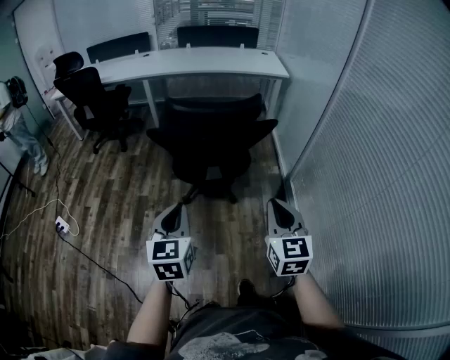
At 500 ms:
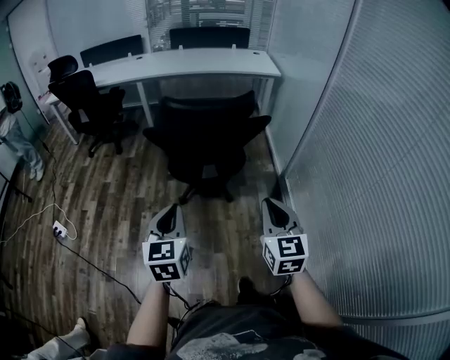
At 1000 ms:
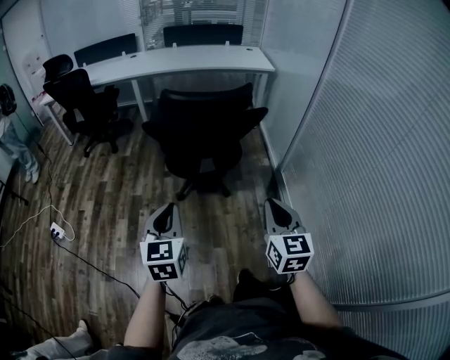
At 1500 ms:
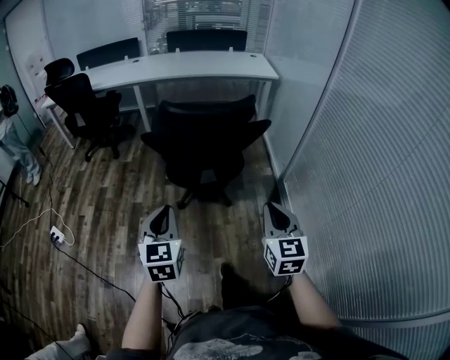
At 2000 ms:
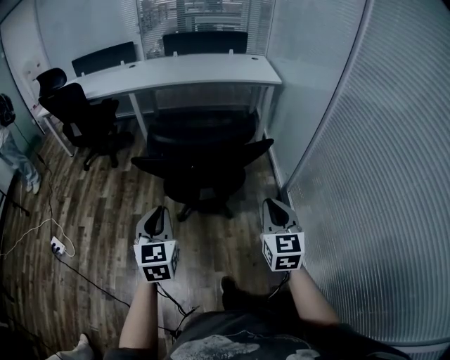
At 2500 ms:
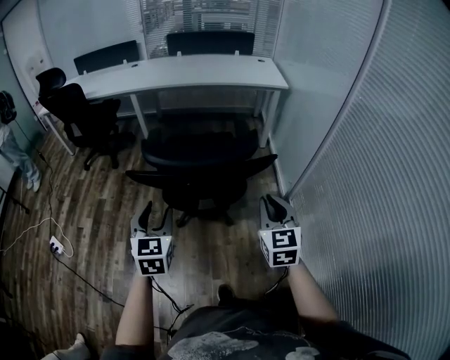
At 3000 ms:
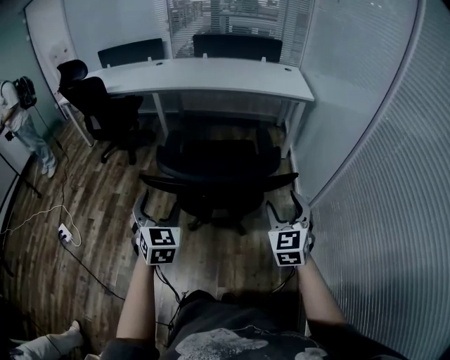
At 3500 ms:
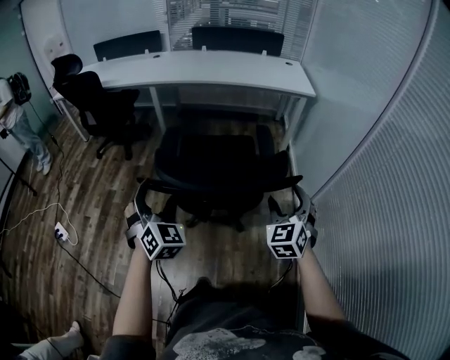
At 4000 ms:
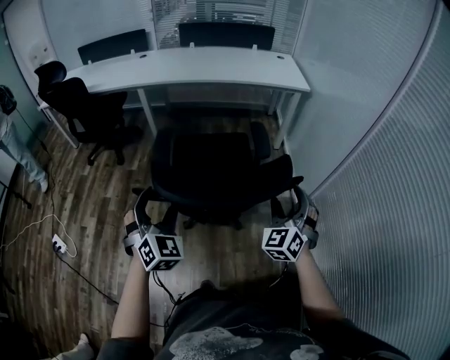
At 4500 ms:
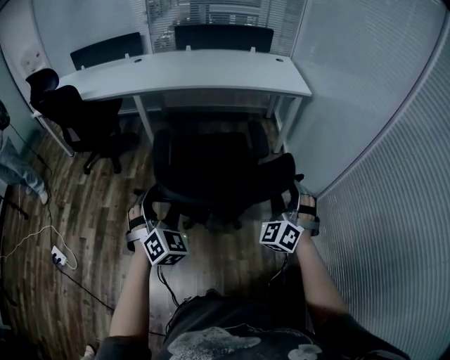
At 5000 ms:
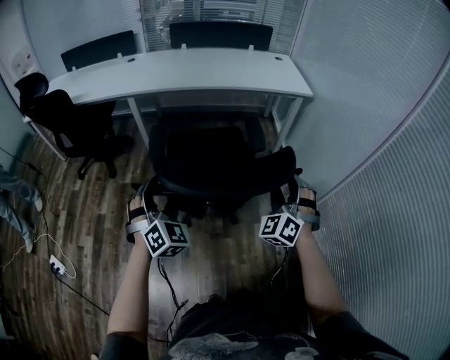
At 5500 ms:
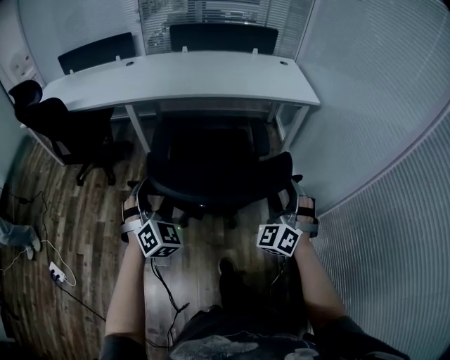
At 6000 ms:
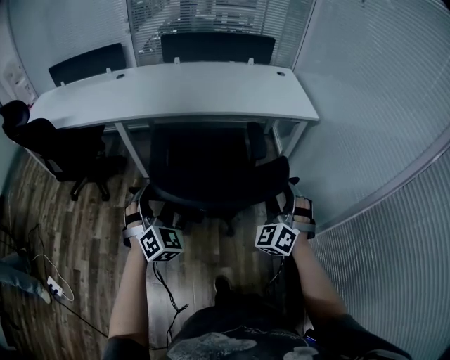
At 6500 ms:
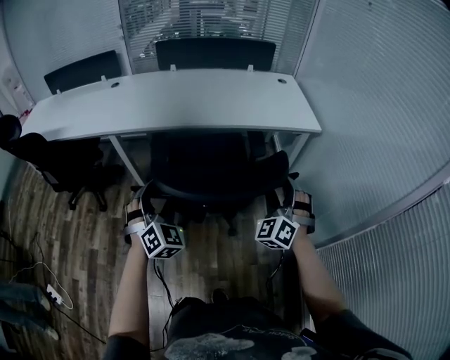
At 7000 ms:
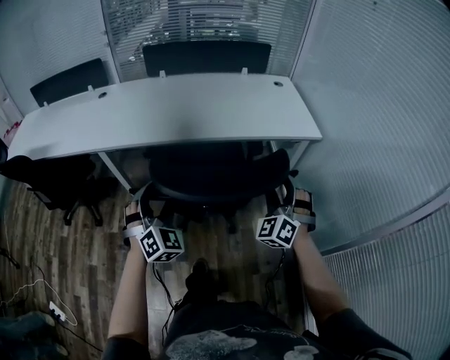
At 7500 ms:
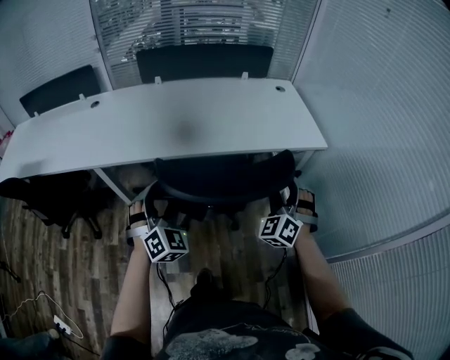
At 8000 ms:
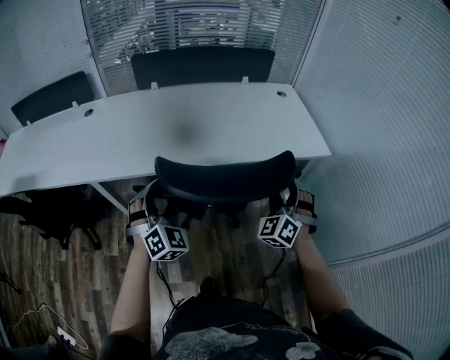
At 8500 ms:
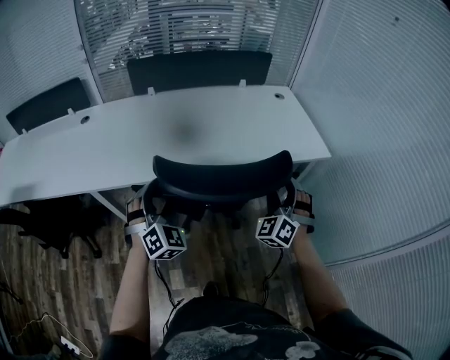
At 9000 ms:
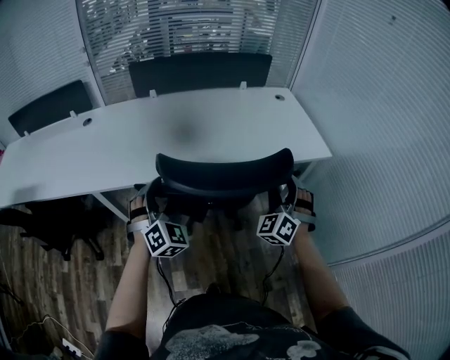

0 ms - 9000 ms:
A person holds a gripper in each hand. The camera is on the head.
0 ms - 2000 ms: The grippers both shift forward by approximately 10 cm.
2000 ms - 4500 ms: Both grippers travel together forward, approximately 30 cm. The left gripper twists some 40 degrees clockwise, seen from behind, and opens, while the right gripper rotates around the line of its fingers by some 50 degrees, counterclockwise from behind, and opens.
4500 ms - 7000 ms: The two grippers travel together, forward, some 50 cm.
7000 ms - 9000 ms: The grippers both shift forward by about 20 cm.

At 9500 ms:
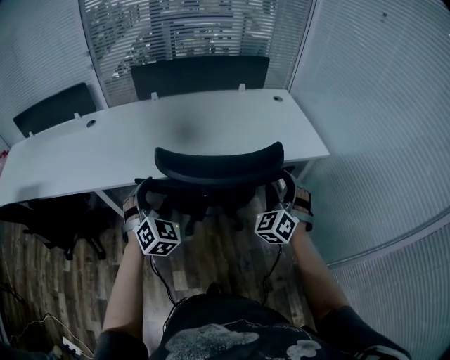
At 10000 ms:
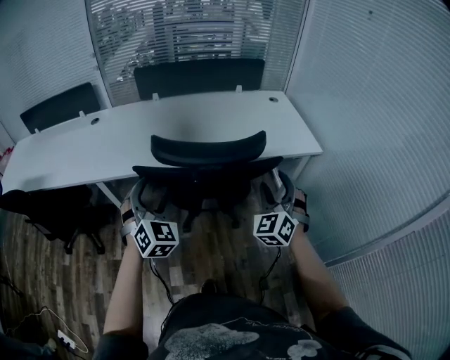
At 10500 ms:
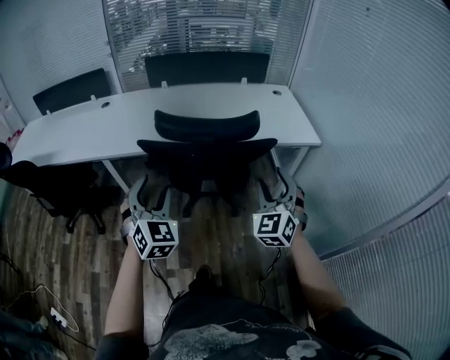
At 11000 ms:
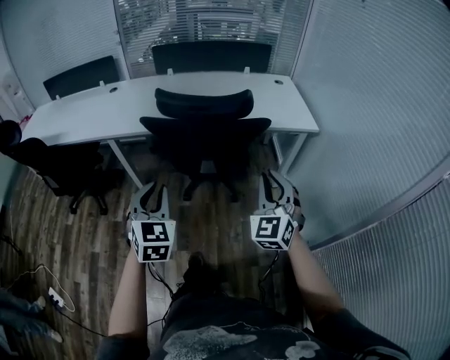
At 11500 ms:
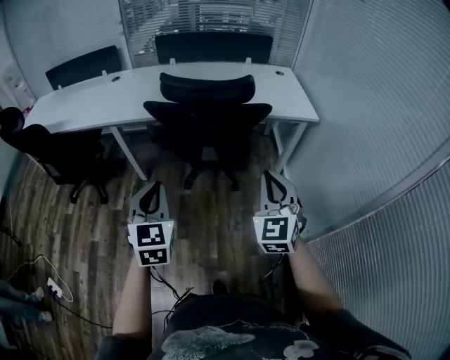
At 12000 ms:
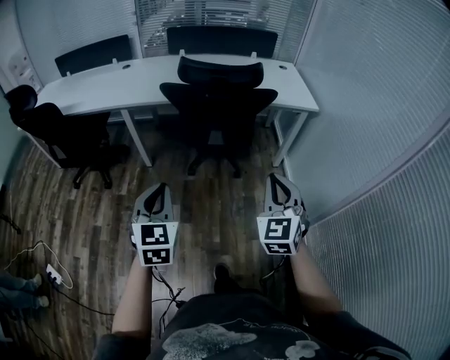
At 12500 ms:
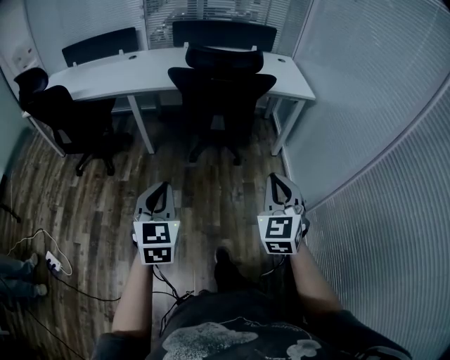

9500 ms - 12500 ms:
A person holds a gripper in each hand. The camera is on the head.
9500 ms - 11000 ms: Both grippers move backward, some 25 cm. The right gripper turns by some 30 degrees, and closes up. Meanwhile the left gripper changes its angle by approximately 30 degrees, and closes its fingers.
11000 ms - 12500 ms: The grippers both shift backward by approximately 30 cm.

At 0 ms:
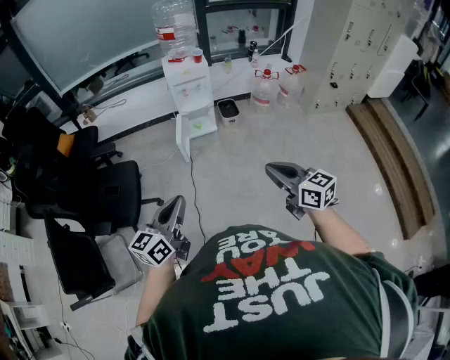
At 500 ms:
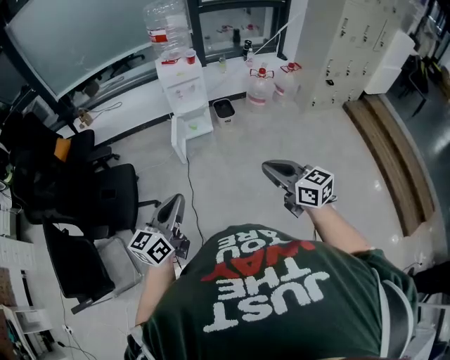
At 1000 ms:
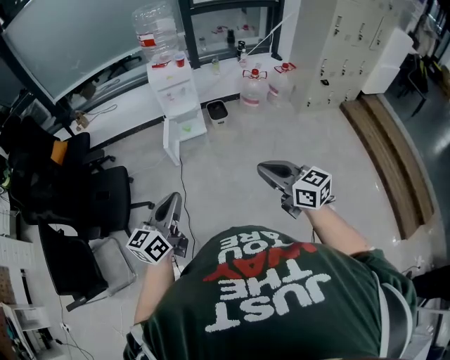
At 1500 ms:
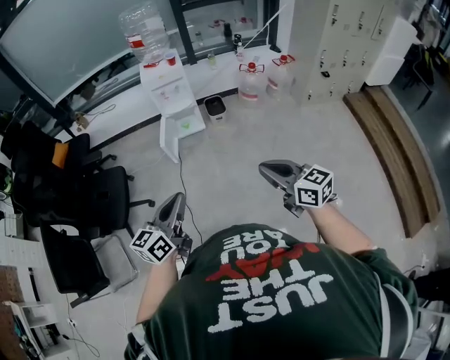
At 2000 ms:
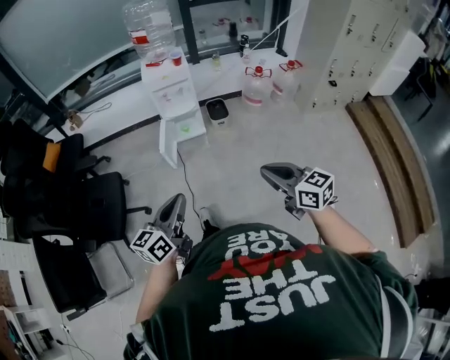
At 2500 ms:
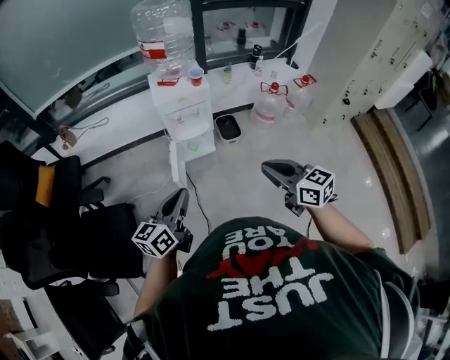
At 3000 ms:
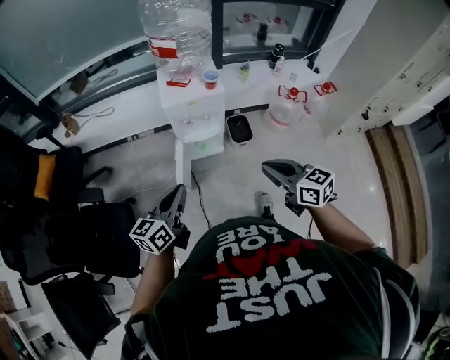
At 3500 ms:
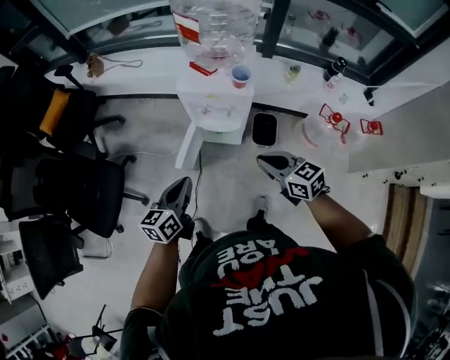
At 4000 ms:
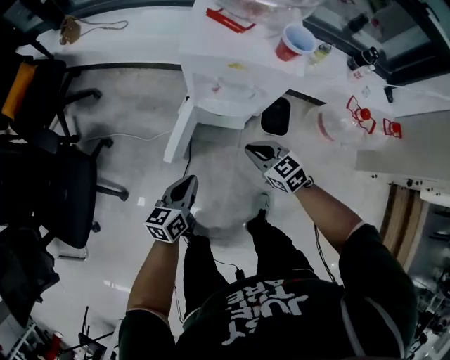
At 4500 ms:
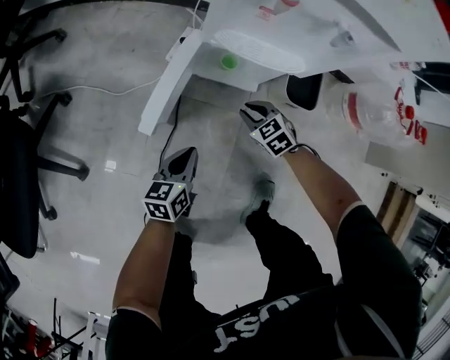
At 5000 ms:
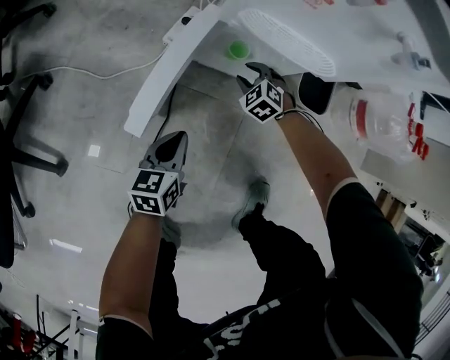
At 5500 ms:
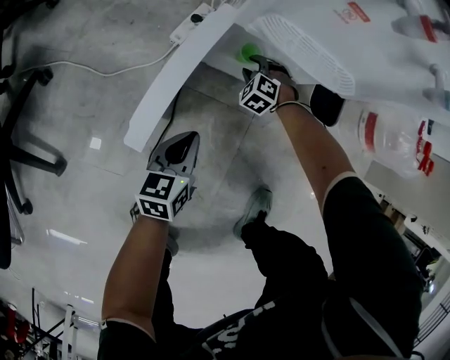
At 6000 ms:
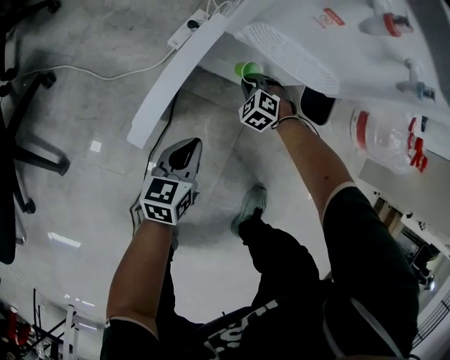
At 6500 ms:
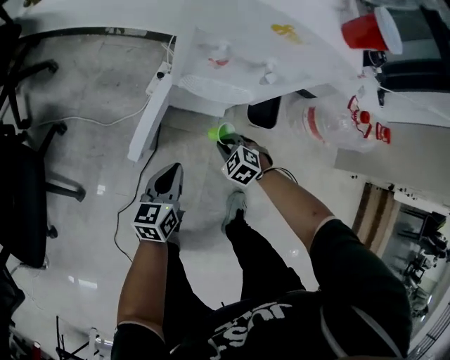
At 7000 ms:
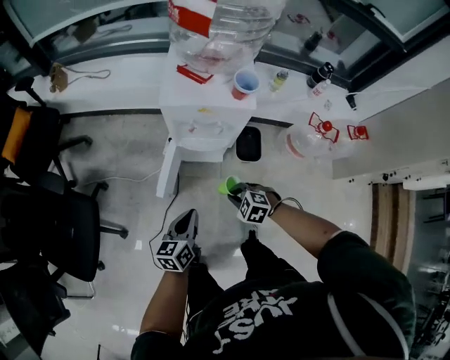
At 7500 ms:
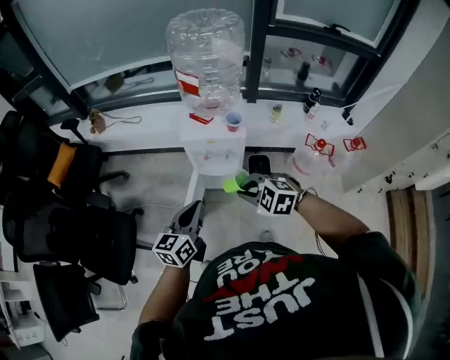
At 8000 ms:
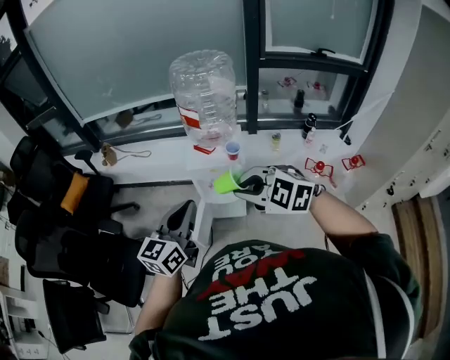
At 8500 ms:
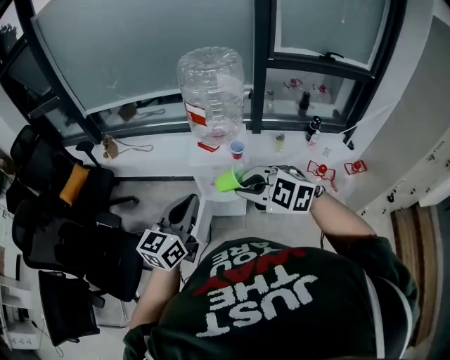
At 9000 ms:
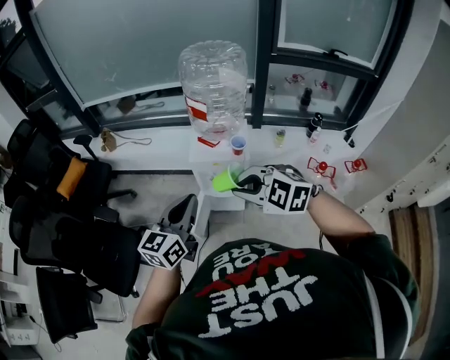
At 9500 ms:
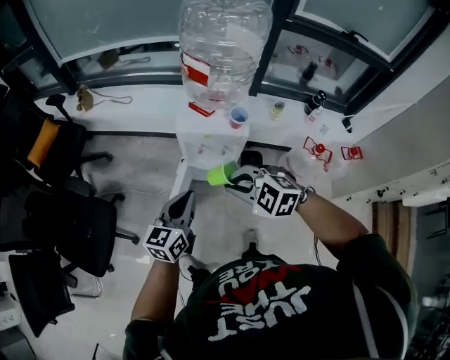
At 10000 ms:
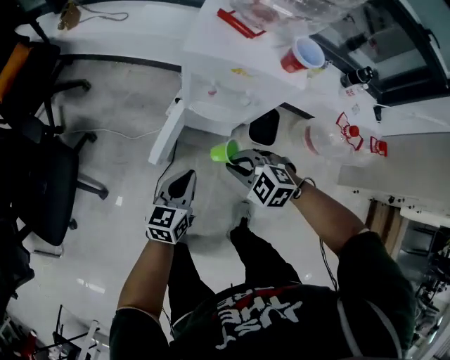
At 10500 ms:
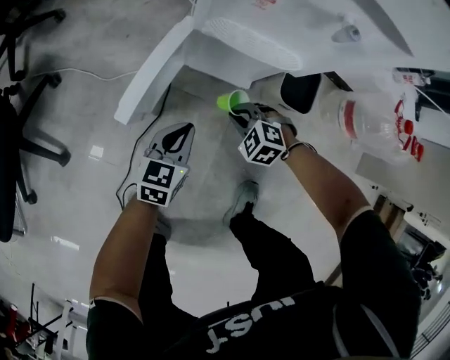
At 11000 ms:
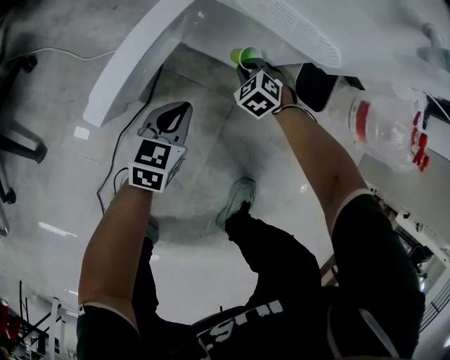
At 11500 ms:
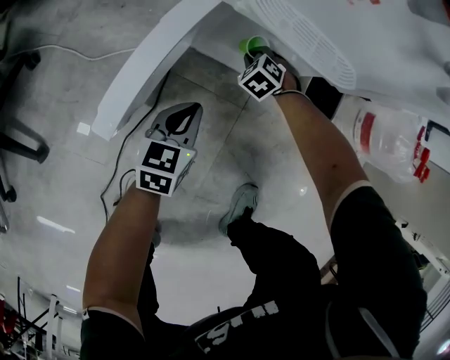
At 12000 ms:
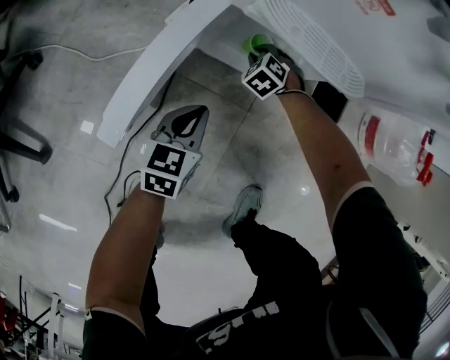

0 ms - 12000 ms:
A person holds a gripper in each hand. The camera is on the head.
0 ms - 2000 ms: Both grippers move to the right and forward, approximately 15 cm.
2000 ms - 4000 ms: The two grippers travel together, roughly 60 cm. The left gripper swivels about 30 degrees. The right gripper swivels some 40 degrees.
4000 ms - 6000 ms: Both grippers travel together downward, roughly 40 cm. The right gripper turns by roughly 50 degrees, and opens and closes again.
6000 ms - 8000 ms: The two grippers go approximately 90 cm upward. The right gripper swivels approximately 40 degrees. The left gripper rotates some 40 degrees.
8000 ms - 10000 ms: The grippers both shift downward by about 50 cm. The left gripper swivels roughly 20 degrees. Meanwhile the right gripper rotates some 20 degrees.
10000 ms - 12000 ms: The two grippers go approximately 50 cm downward. The right gripper changes its angle by about 30 degrees.

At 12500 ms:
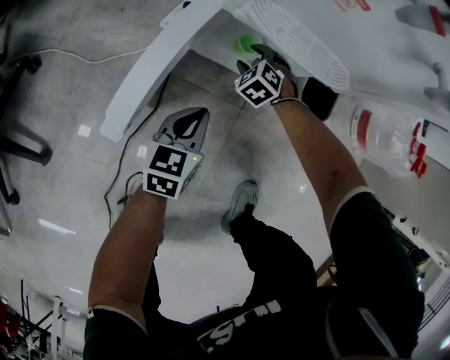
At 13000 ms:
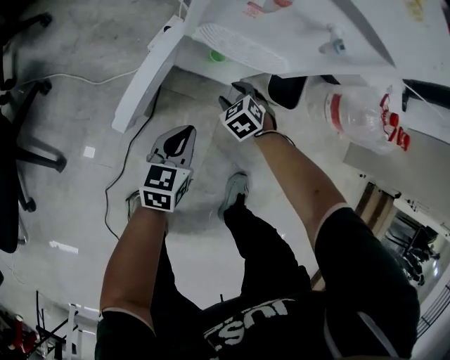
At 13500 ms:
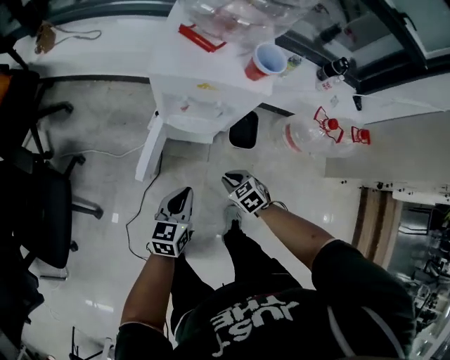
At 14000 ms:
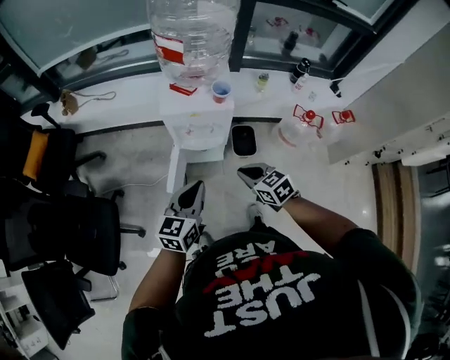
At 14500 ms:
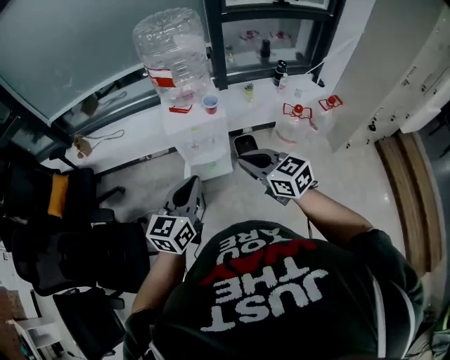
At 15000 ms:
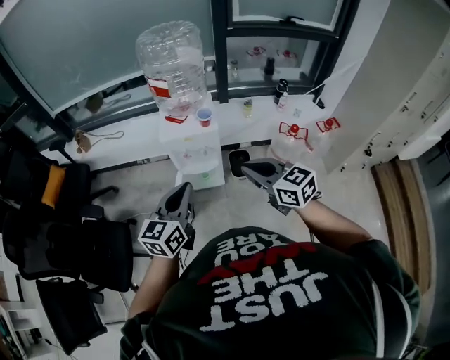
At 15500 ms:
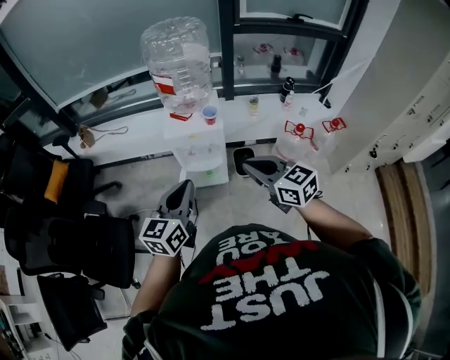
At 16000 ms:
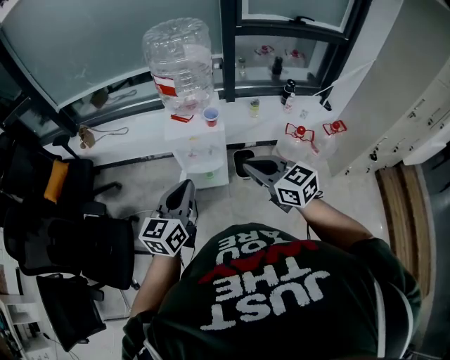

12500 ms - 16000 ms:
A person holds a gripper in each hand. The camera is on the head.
12500 ms - 14500 ms: The two grippers go about 90 cm upward. The left gripper changes its angle by about 30 degrees, while the right gripper tips its fingers upward by about 40 degrees, and closes.
14500 ms - 16000 ms: The right gripper heads to the right, covering roughly 5 cm.
